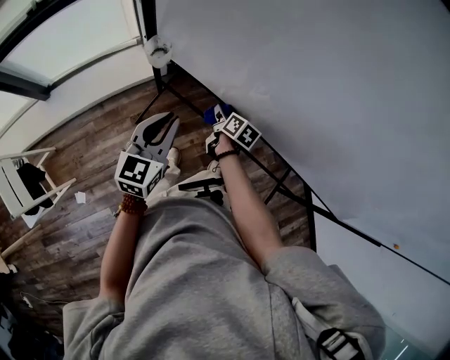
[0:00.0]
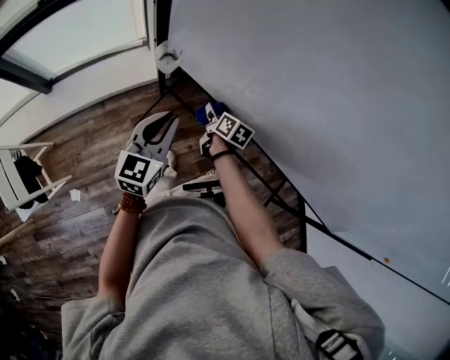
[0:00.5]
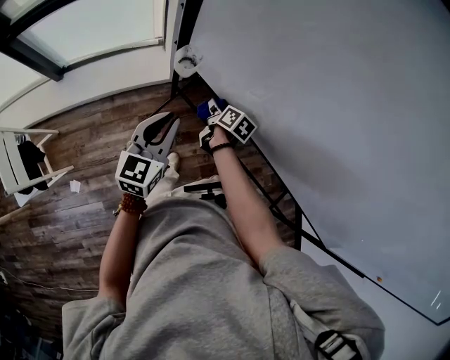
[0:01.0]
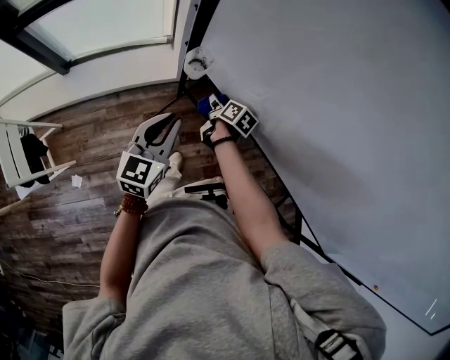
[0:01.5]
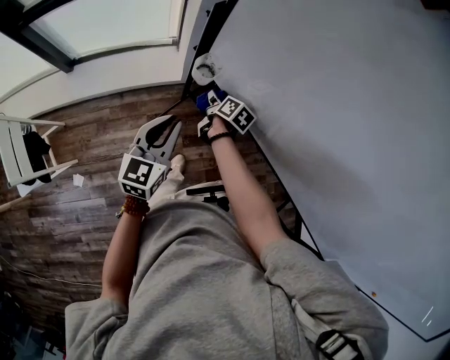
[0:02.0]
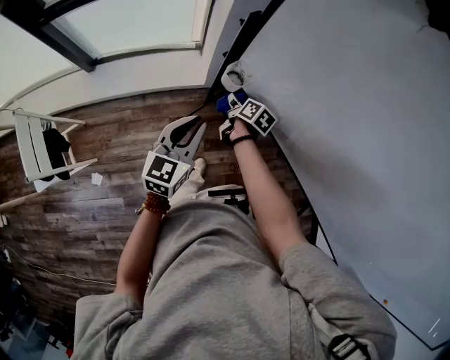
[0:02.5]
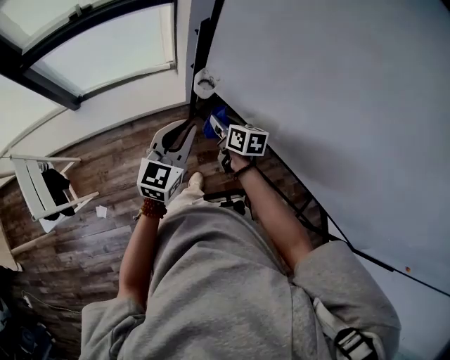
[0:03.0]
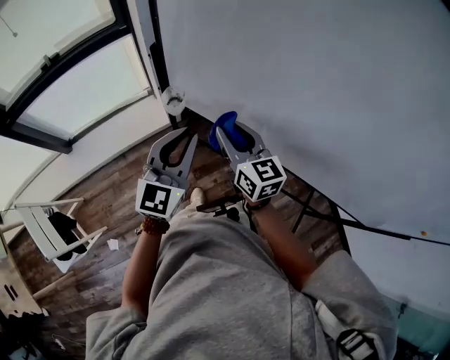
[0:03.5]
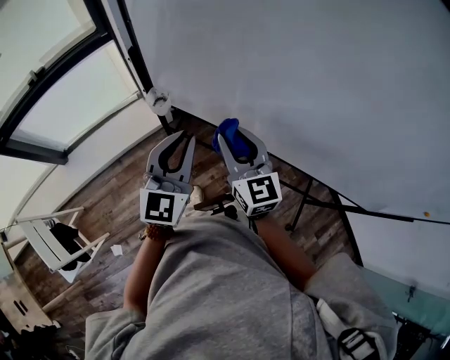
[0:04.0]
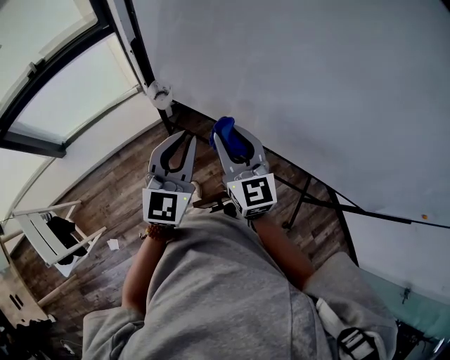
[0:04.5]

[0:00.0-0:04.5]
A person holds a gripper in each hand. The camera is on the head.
0:00.0 to 0:02.0: The right gripper moves to the left and forward, approximately 20 cm, while the left gripper shifts roughly 10 cm to the left.
0:02.0 to 0:04.5: The left gripper shifts about 15 cm upward and to the right, and swivels some 20 degrees; the right gripper shifts about 35 cm upward and backward, and rotates around the line of its fingers by approximately 50 degrees, counterclockwise from behind.

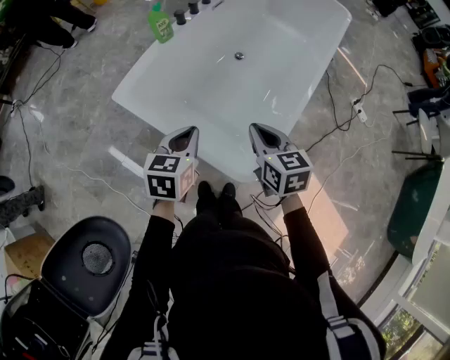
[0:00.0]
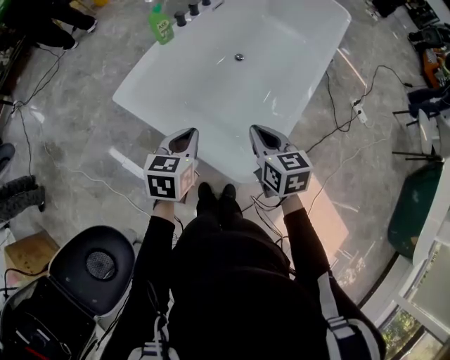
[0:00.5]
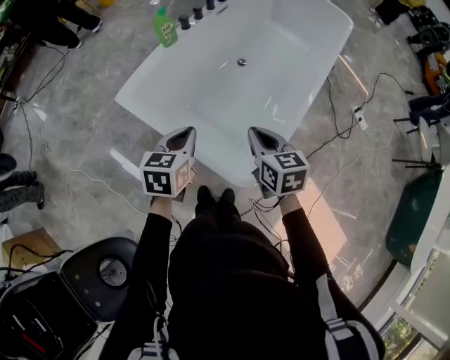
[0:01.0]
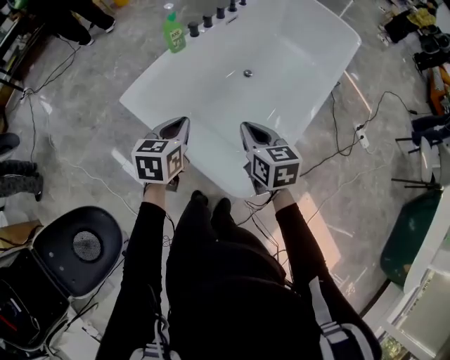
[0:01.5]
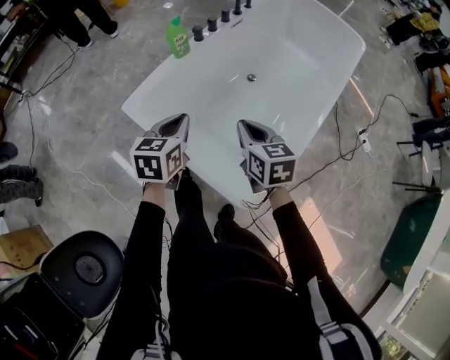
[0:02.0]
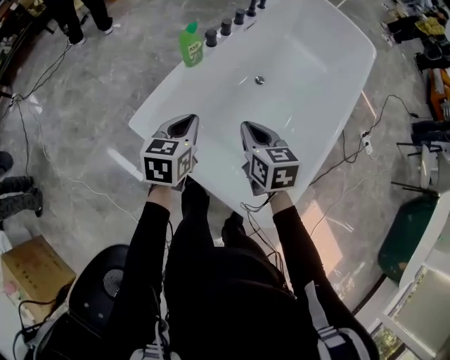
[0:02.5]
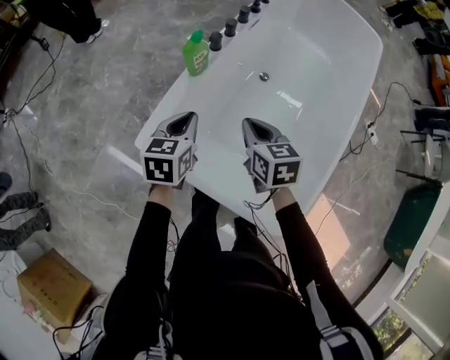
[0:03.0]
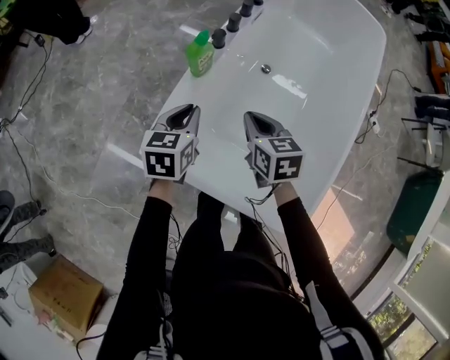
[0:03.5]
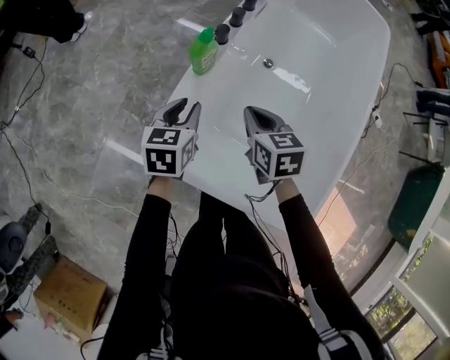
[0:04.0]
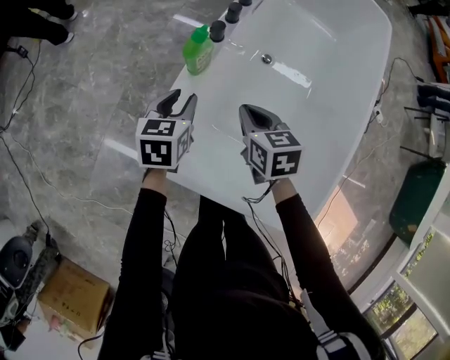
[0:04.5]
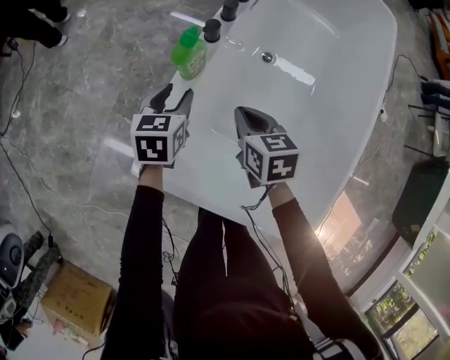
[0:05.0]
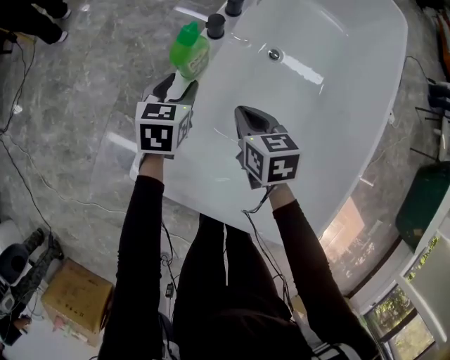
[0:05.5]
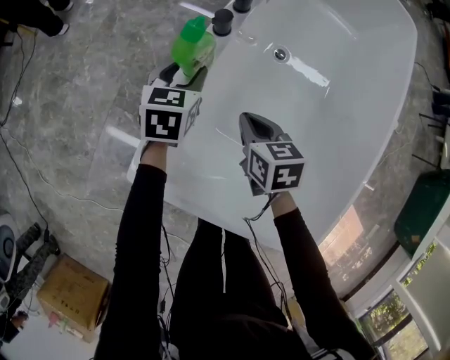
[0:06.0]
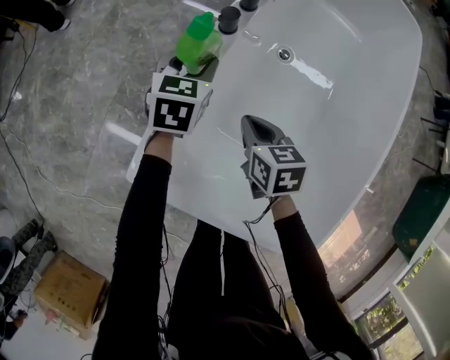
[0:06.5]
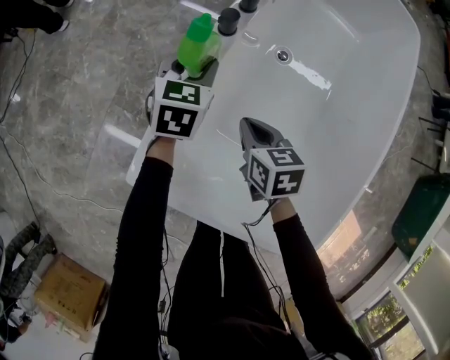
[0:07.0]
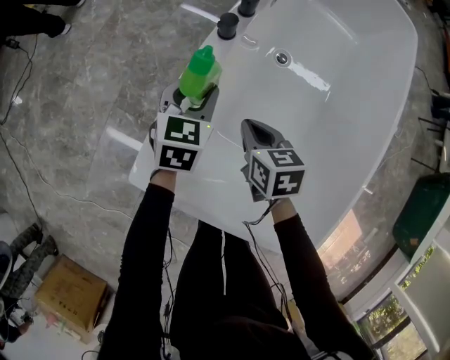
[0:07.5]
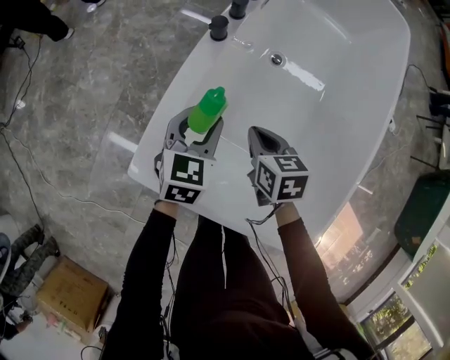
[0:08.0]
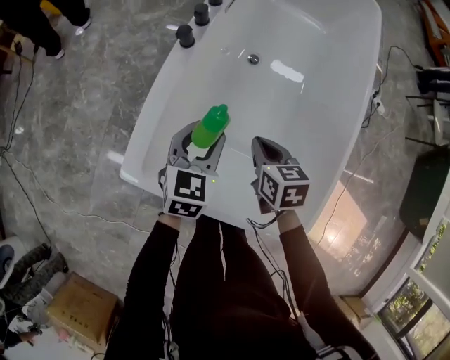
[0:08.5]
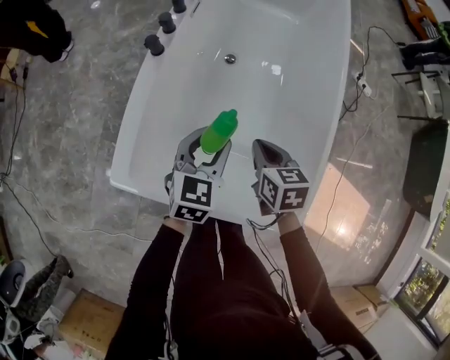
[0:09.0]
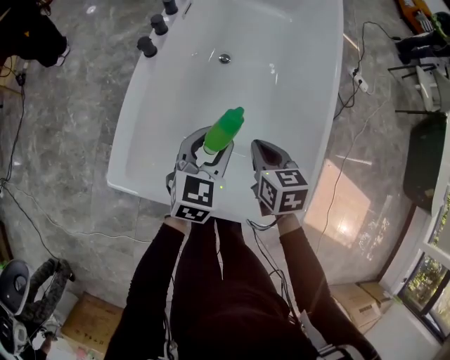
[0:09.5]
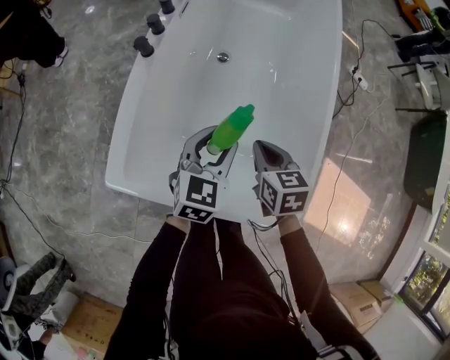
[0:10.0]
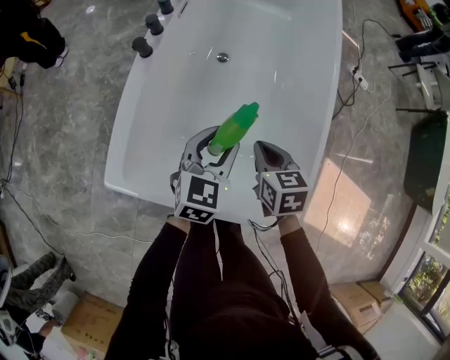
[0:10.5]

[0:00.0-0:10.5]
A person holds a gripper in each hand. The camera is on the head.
0:00.0 to 0:02.0: The two grippers go some 10 cm forward.
0:02.0 to 0:04.0: Both grippers move forward, to the left and downward, some 30 cm. The left gripper opens up.
0:04.0 to 0:06.5: The left gripper goes approximately 20 cm forward and downward, and opens up. The right gripper moves downward, roughly 10 cm.
0:06.5 to 0:08.5: The left gripper heads backward, to the right and upward, covering roughly 25 cm; the right gripper goes about 15 cm to the right, backward and upward.
0:08.5 to 0:10.5: The two grippers go roughly 10 cm to the right.

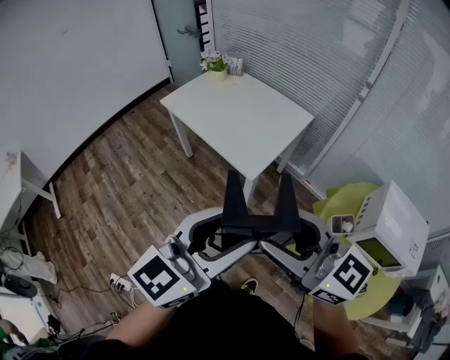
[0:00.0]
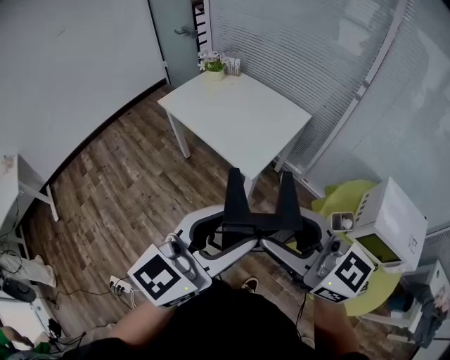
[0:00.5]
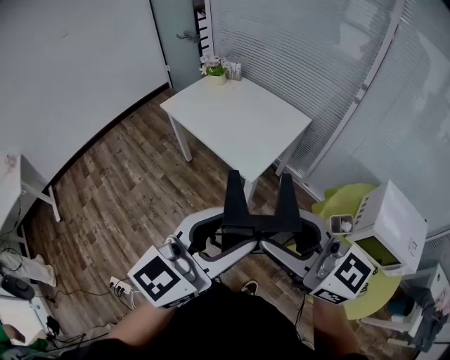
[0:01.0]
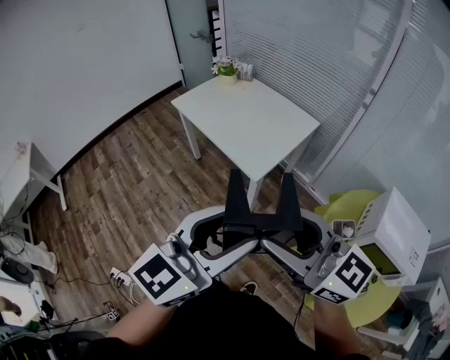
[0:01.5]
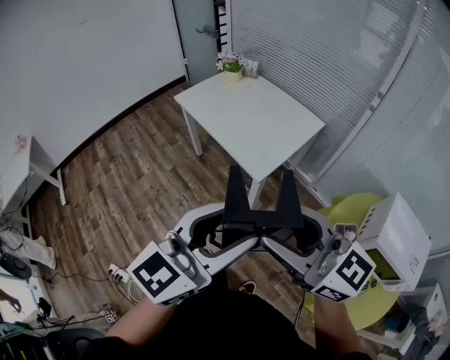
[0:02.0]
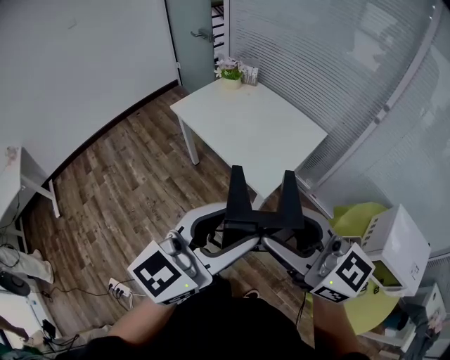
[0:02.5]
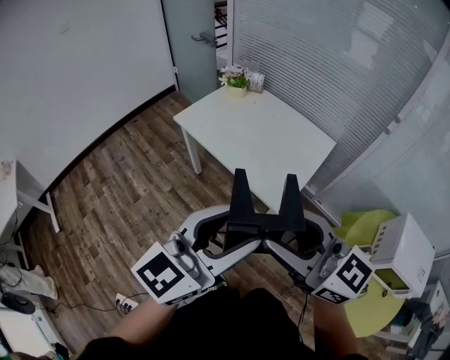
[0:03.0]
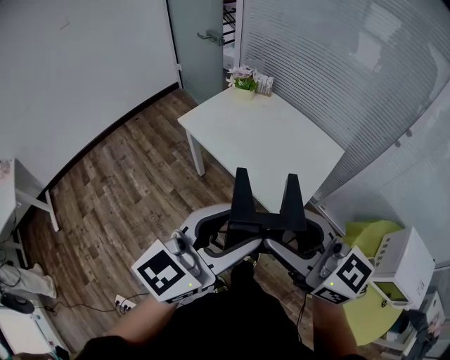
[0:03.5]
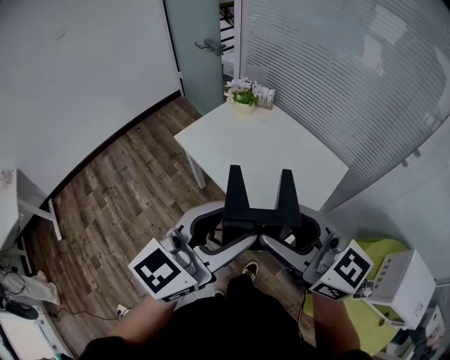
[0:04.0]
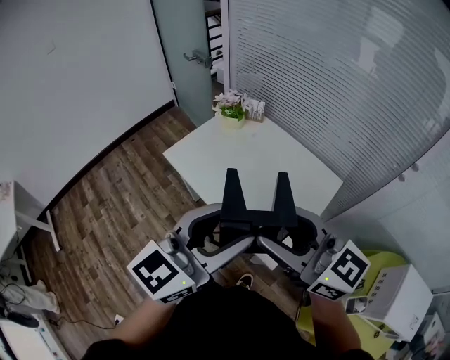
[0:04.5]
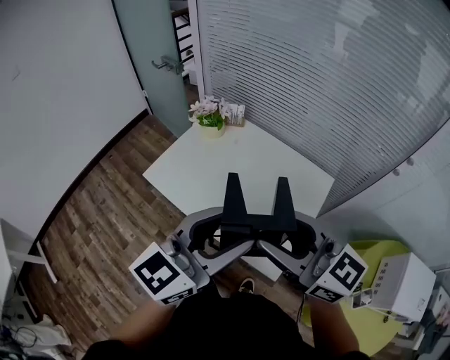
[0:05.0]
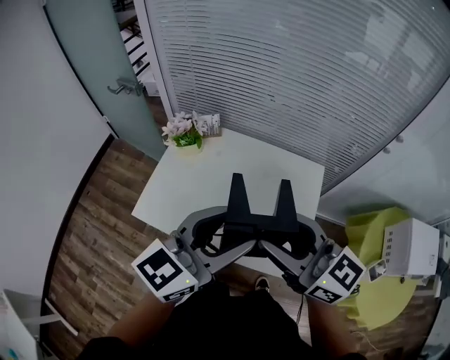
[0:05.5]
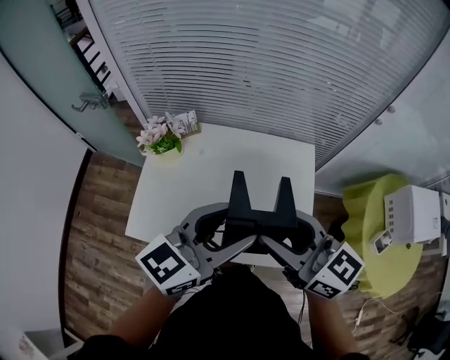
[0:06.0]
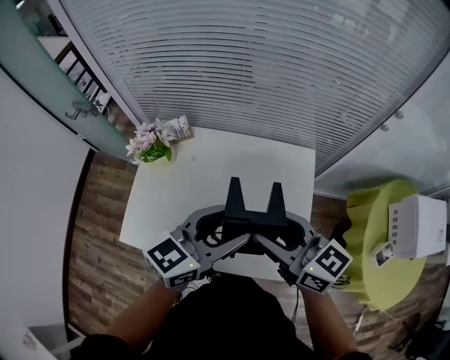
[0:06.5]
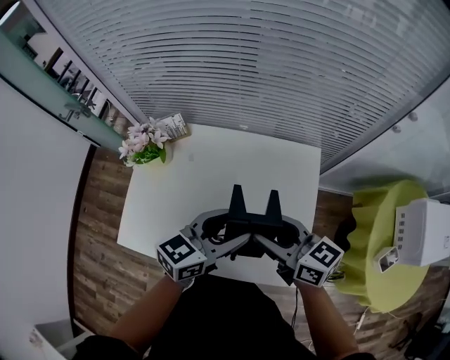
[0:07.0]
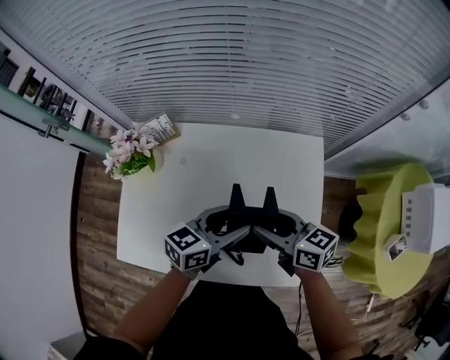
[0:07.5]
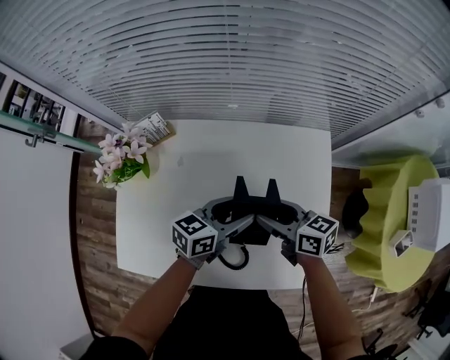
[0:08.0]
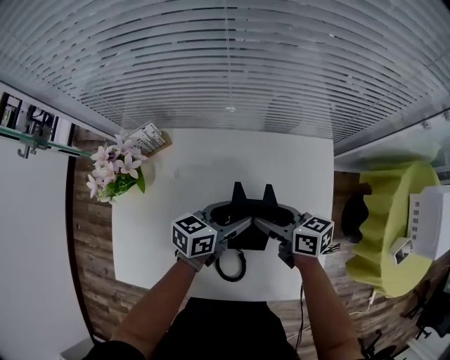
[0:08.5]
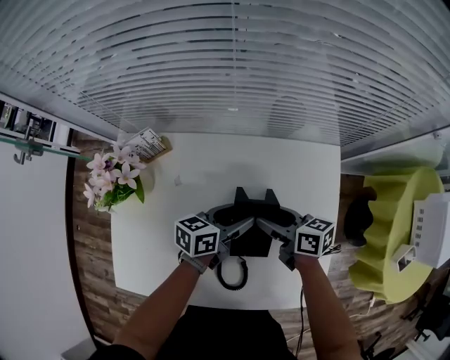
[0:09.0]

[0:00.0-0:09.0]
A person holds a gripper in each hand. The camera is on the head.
0:00.0 to 0:02.0: There are only small adjustments of the grippers.
0:02.0 to 0:04.5: Both grippers are carried forward, some 40 cm.
0:04.5 to 0:07.0: The left gripper shifts by some 35 cm, and rotates approximately 50 degrees, while the right gripper changes place by some 35 cm, and rotates approximately 50 degrees.
0:07.0 to 0:09.0: Both grippers travel together downward and forward, approximately 25 cm. The right gripper turns by roughly 30 degrees; the left gripper rotates about 30 degrees.

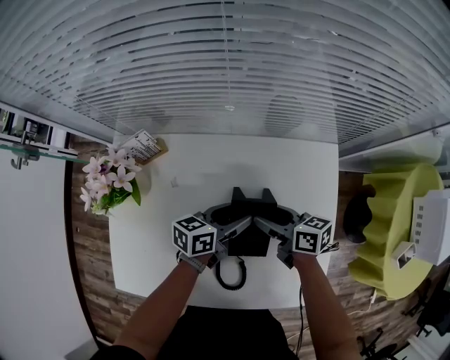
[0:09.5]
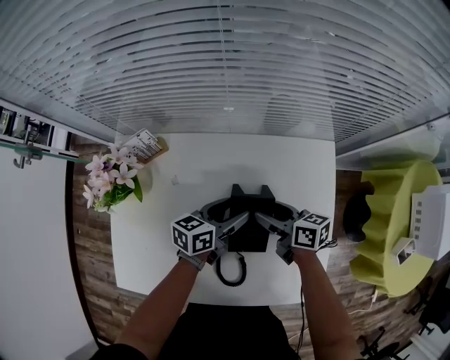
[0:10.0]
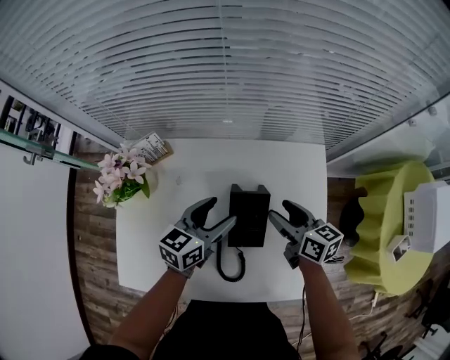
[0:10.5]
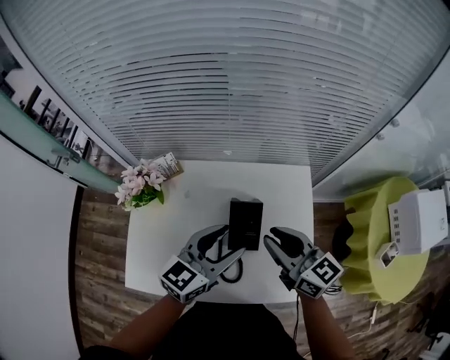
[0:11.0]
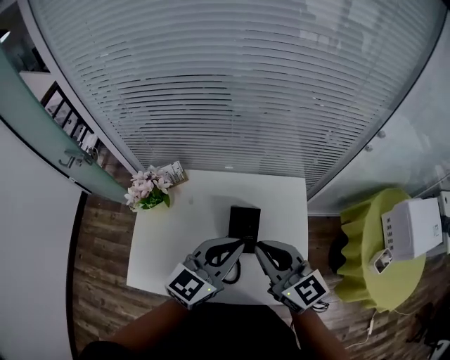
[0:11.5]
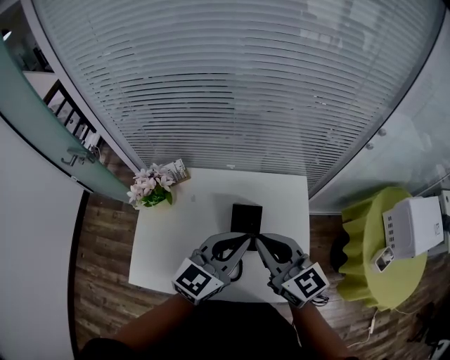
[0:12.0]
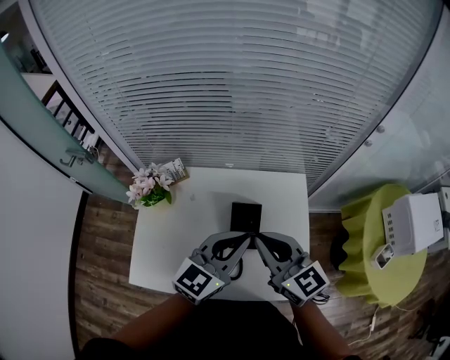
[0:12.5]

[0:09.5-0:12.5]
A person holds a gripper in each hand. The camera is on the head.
0:09.5 to 0:11.0: The right gripper goes about 25 cm upward, rotates roughly 40 degrees, and closes its fingers. Meanwhile the left gripper heads upward and backward, covering some 25 cm, and turns by approximately 40 degrees.
0:11.0 to 0:12.5: Both grippers move upward, about 5 cm. The left gripper closes its fingers.
